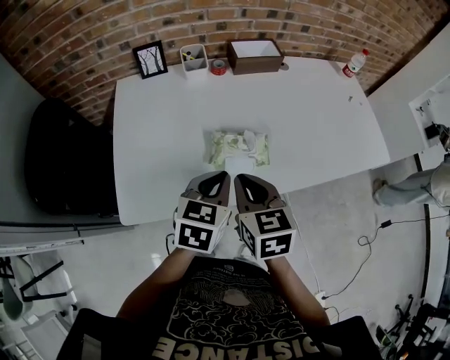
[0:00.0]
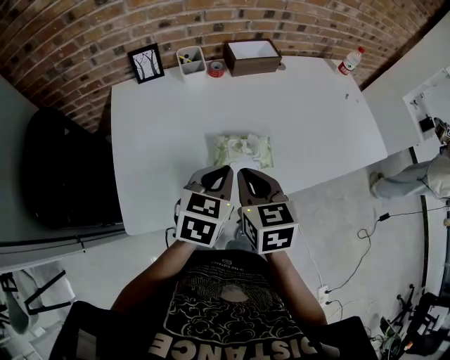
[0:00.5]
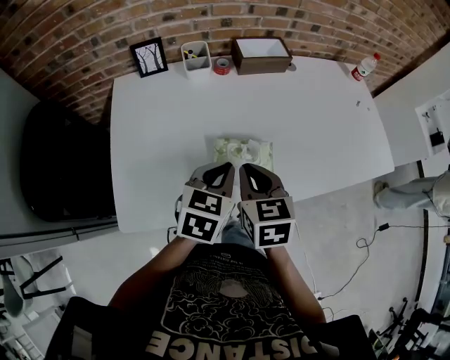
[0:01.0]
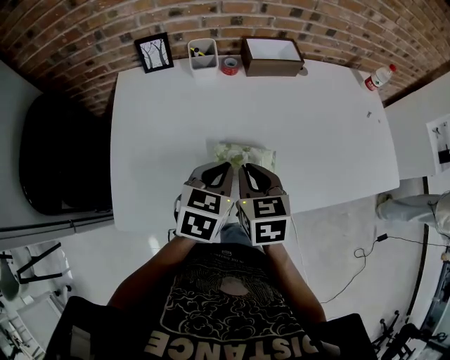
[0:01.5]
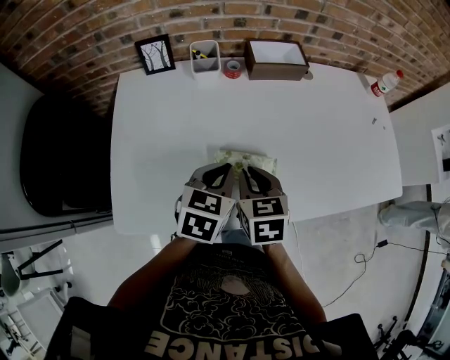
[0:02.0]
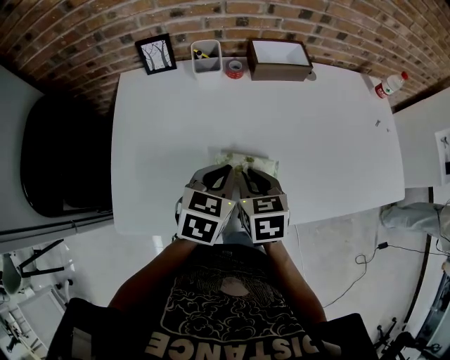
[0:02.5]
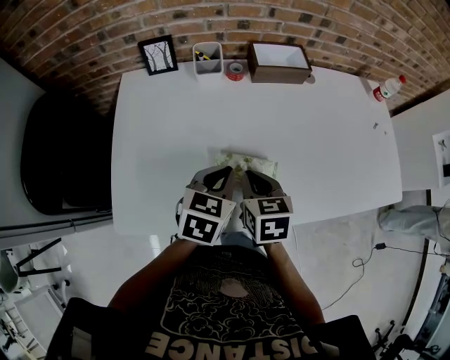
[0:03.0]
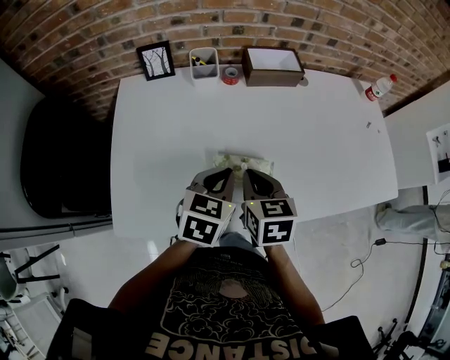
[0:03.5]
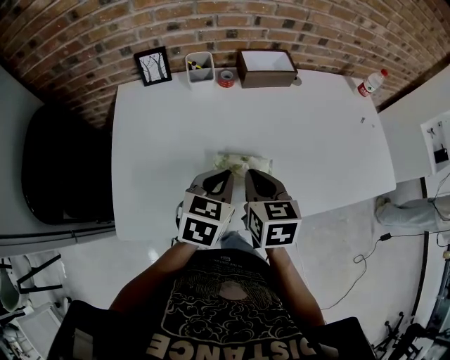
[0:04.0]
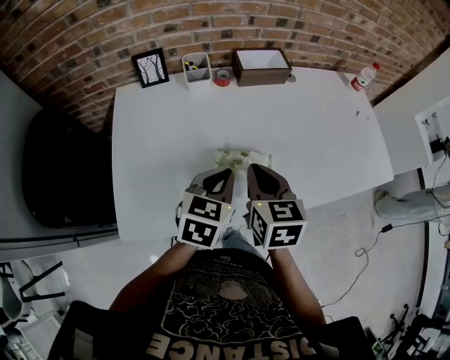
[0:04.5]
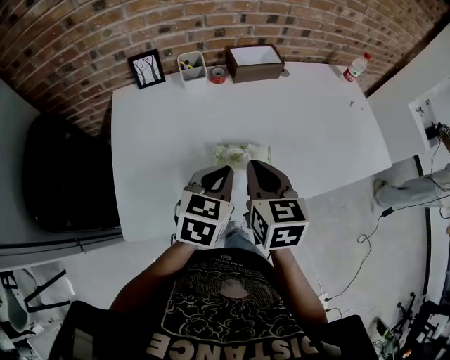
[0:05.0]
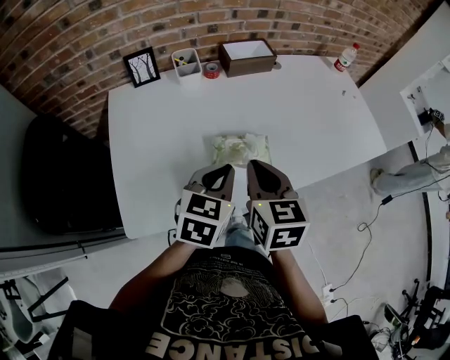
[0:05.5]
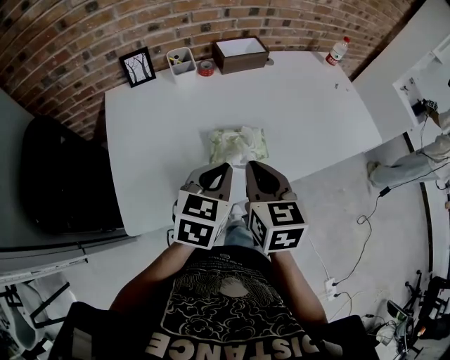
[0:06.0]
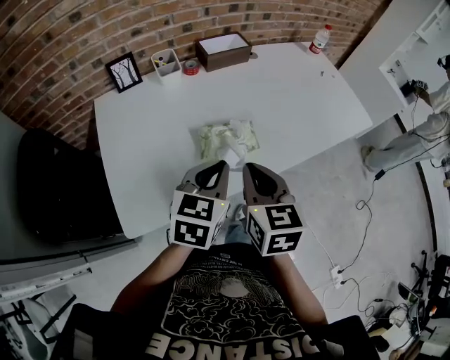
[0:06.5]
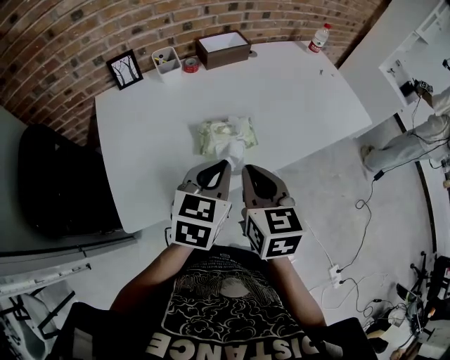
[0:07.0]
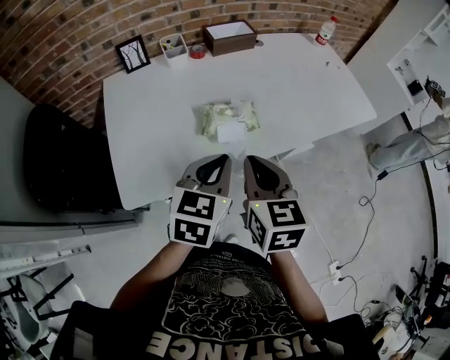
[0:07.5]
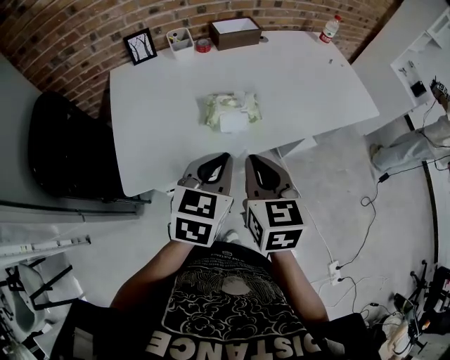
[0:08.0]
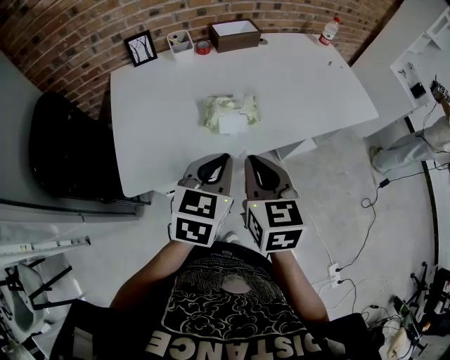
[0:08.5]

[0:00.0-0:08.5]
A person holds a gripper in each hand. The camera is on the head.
0.0 to 2.0 s: The left gripper is displaced forward by roughly 10 cm; the right gripper goes approximately 15 cm forward and downward.
2.0 to 4.0 s: The grippers make only small movements.
4.0 to 6.5 s: The right gripper travels backward and upward by some 15 cm. The left gripper shifts roughly 10 cm backward.
6.5 to 8.5 s: The grippers both shift backward by roughly 10 cm.

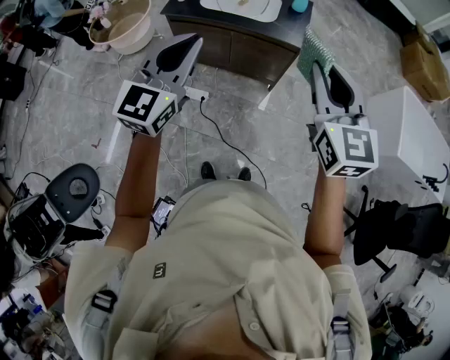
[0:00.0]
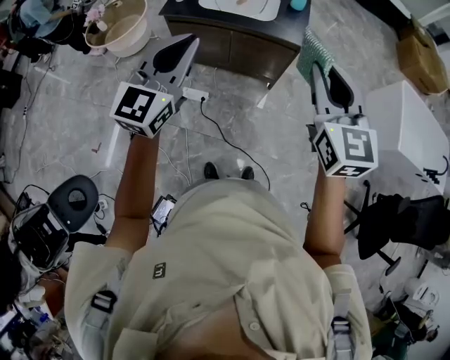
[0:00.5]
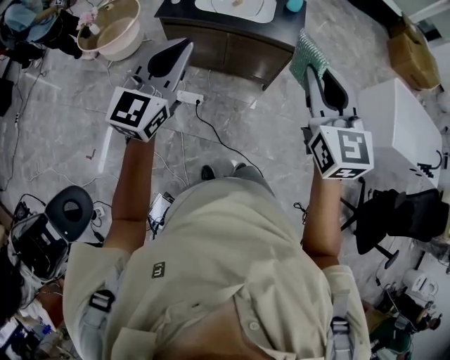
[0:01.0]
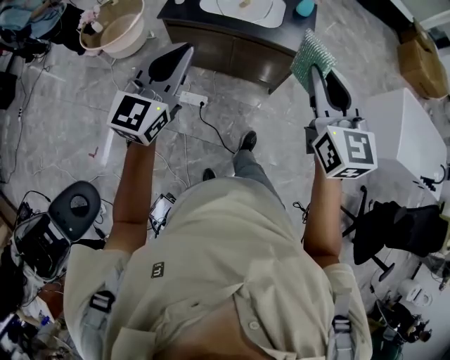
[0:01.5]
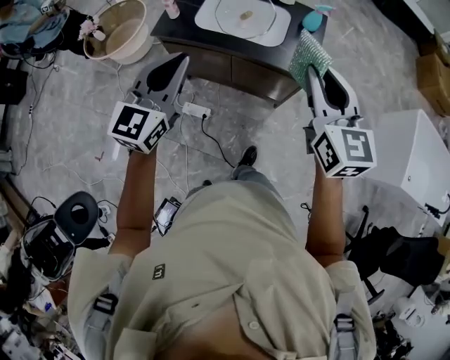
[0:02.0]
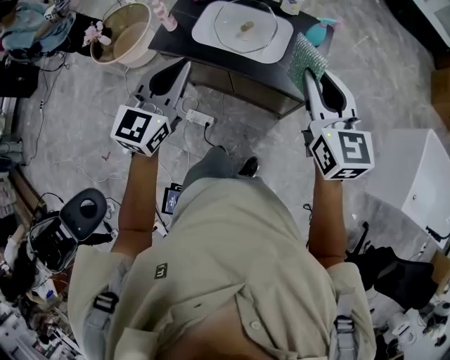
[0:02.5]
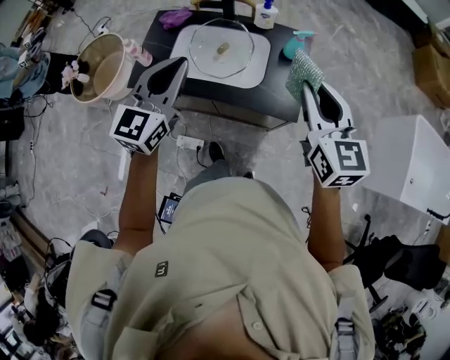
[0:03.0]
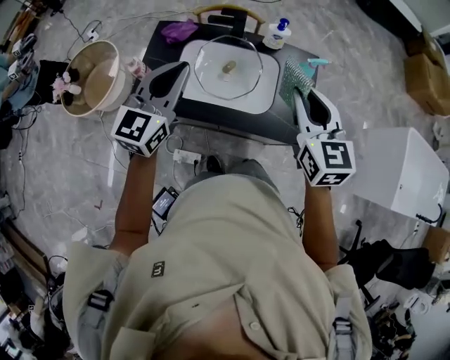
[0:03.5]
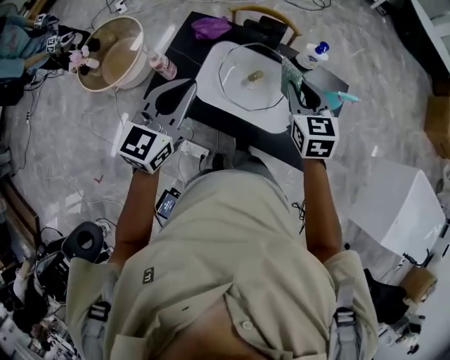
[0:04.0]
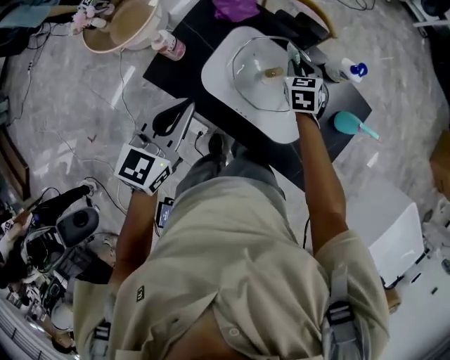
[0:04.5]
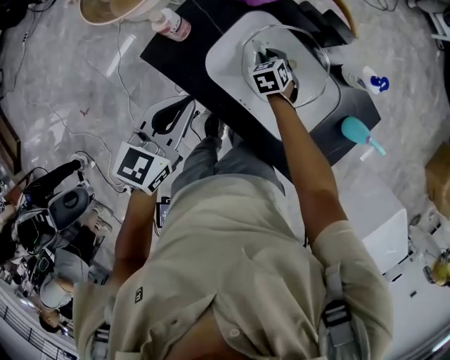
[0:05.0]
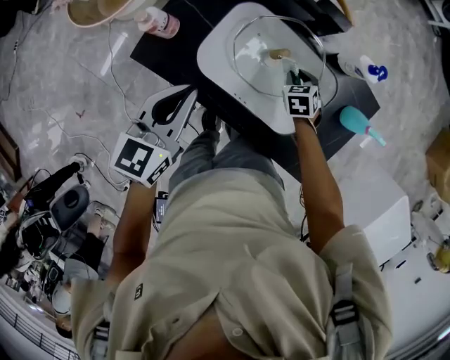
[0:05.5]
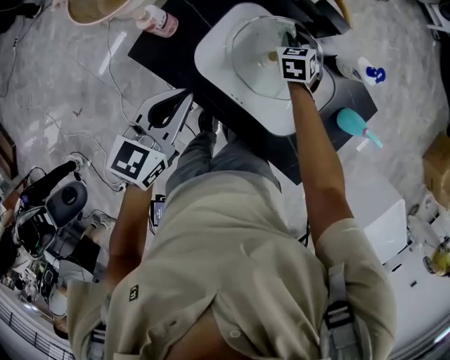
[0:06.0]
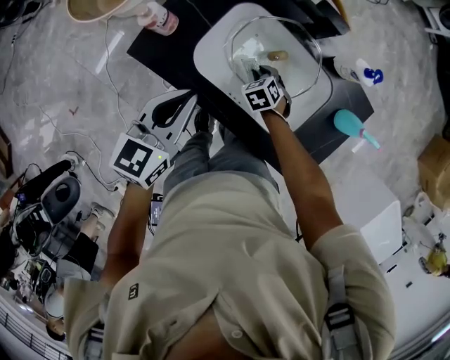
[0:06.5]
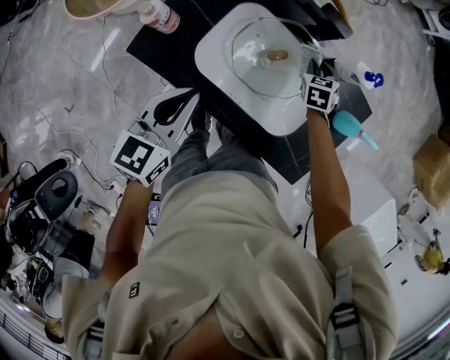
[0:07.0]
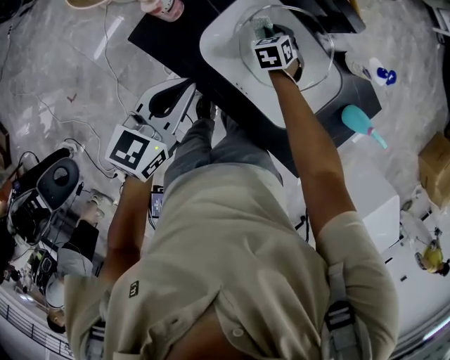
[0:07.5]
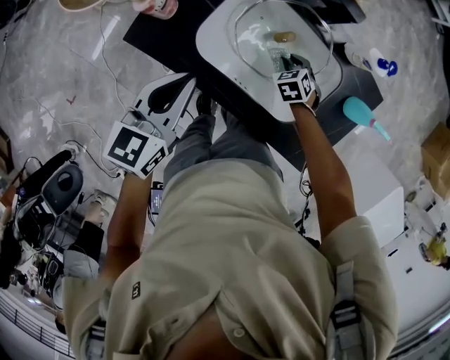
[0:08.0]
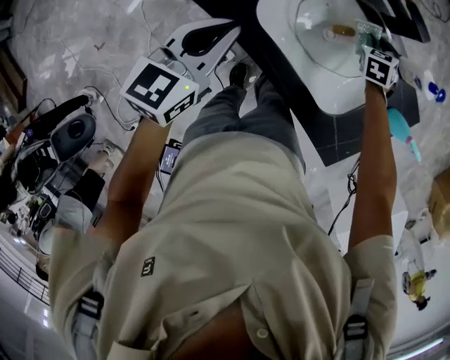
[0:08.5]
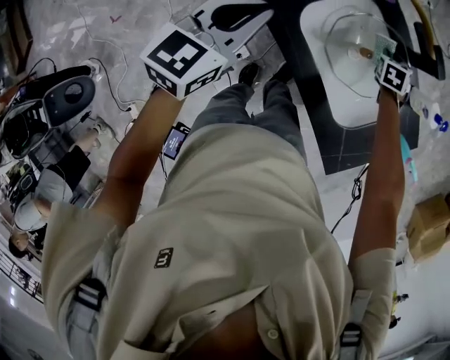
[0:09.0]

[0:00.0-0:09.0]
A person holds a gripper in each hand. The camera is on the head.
0.0 to 2.0 s: Both grippers travel together forward, approximately 25 cm.
2.0 to 4.5 s: The left gripper goes roughly 40 cm forward and downward, and turns by roughly 30 degrees. Meanwhile the right gripper goes approximately 70 cm forward and downward, and tips its fingers downward by some 40 degrees.
4.5 to 7.0 s: The right gripper moves left and right over approximately 20 cm, changing direction 3 times. The left gripper moves downward, some 10 cm.
7.0 to 9.0 s: The left gripper travels to the left by about 10 cm, while the right gripper moves left and right over approximately 15 cm, changing direction 2 times.

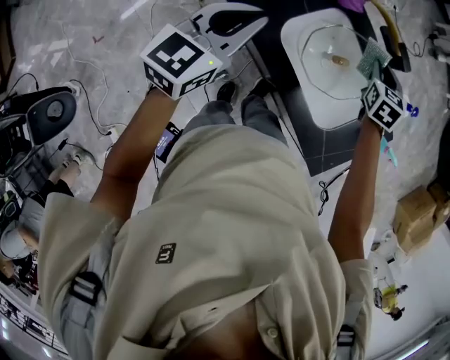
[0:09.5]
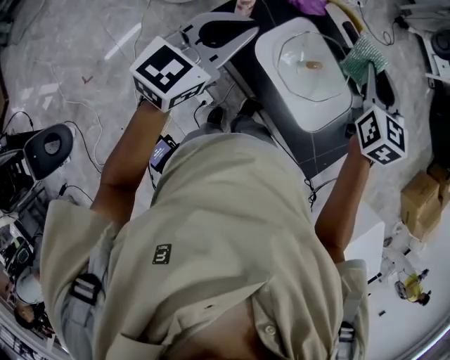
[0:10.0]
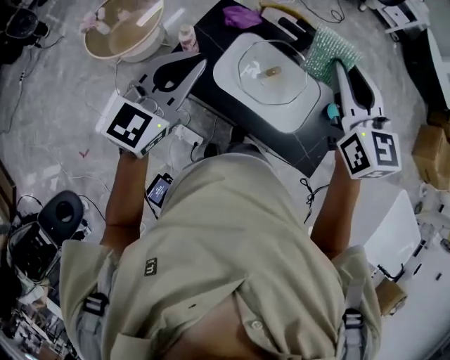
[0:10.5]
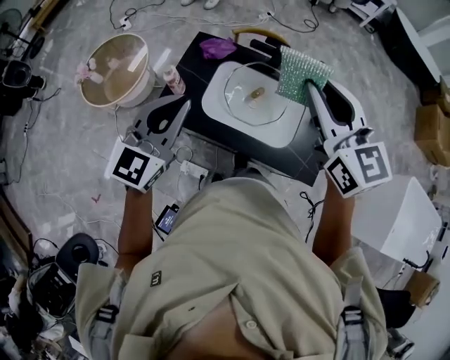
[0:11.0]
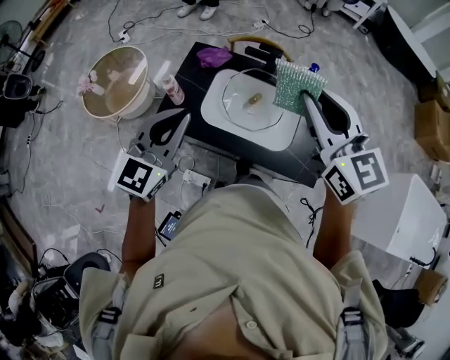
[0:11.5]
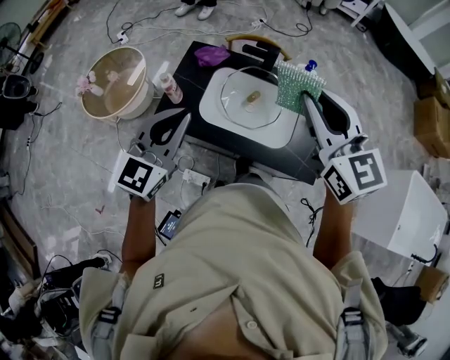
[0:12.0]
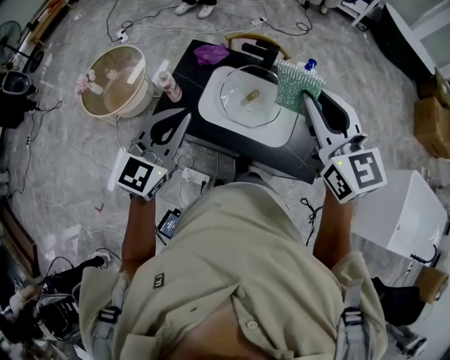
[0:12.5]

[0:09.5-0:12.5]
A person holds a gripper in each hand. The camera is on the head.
9.5 to 11.0 s: The left gripper moves upward and to the right, some 20 cm, and turns by approximately 30 degrees; the right gripper moves upward and backward, roughly 40 cm, and tips its fingers upward by approximately 40 degrees.
11.0 to 12.5 s: The grippers stay close to where they were, moving slightly.

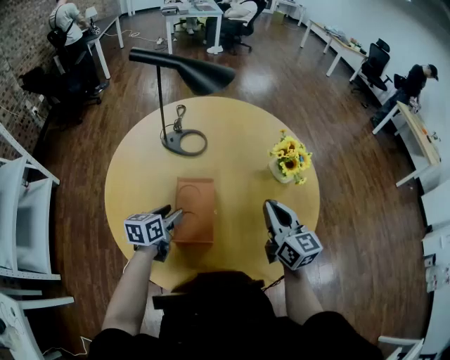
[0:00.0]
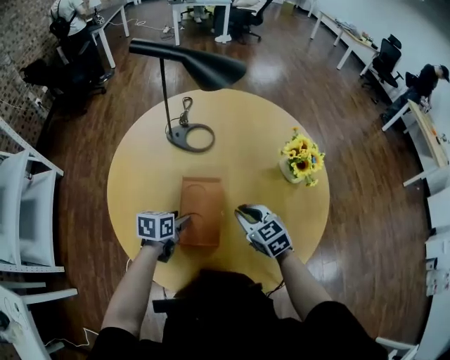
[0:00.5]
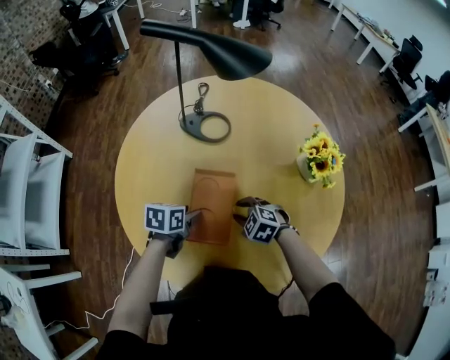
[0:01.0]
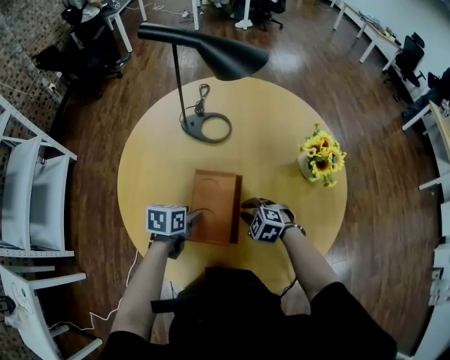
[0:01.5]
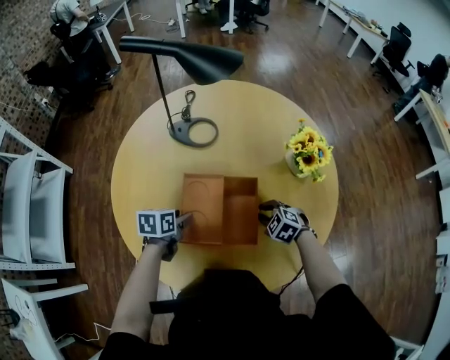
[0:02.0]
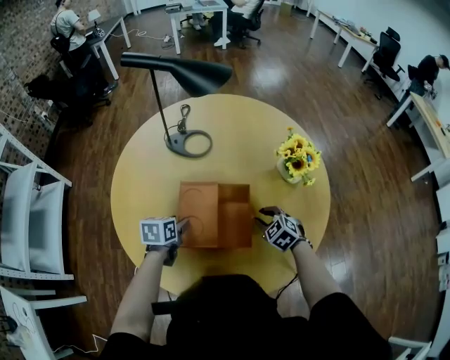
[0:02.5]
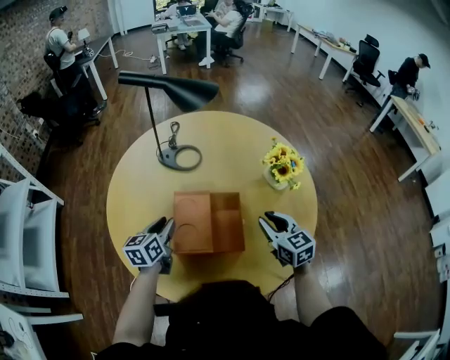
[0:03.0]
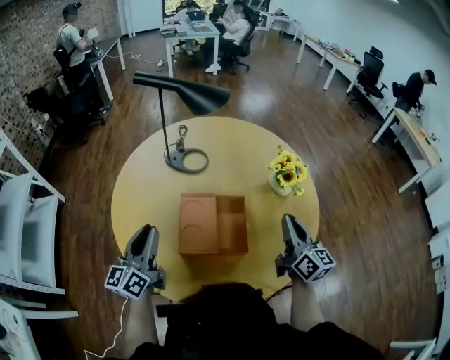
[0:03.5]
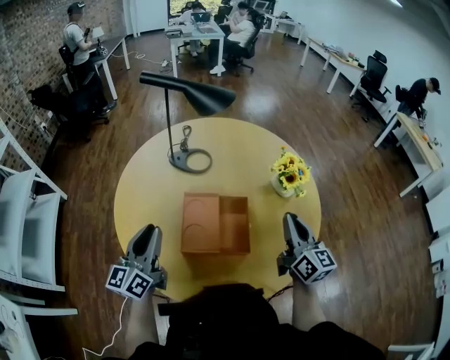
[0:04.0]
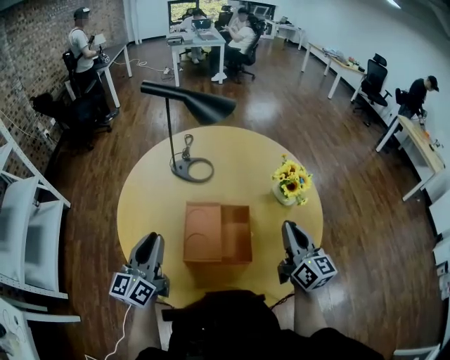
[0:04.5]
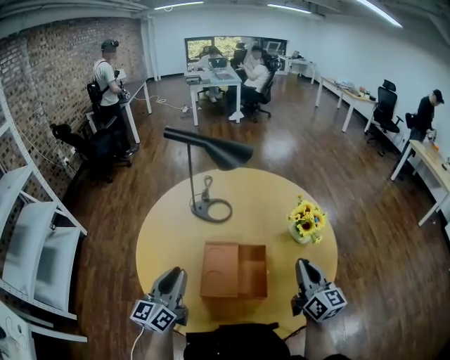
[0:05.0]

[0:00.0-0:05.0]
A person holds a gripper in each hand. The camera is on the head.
0.0 to 2.5 s: The left gripper is displaced downward by roughly 5 cm. Meanwhile the right gripper is displaced downward by roughly 20 cm, points its fingers about 40 degrees further downward, and opens its fingers.
2.5 to 5.0 s: The right gripper shifts roughly 25 cm upward, tips its fingers upward by about 50 degrees, and closes its fingers. The left gripper travels upward and backward by some 25 cm, tips its fingers upward by roughly 50 degrees, and closes up.

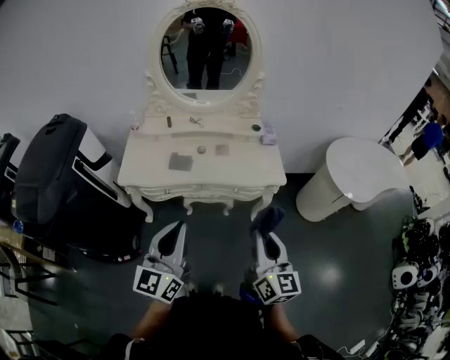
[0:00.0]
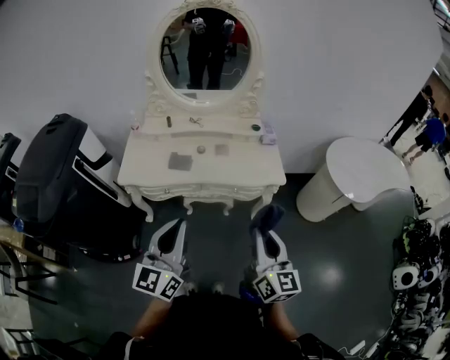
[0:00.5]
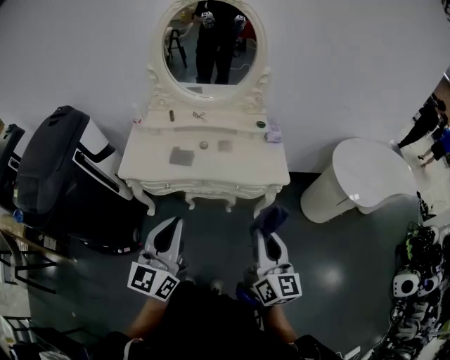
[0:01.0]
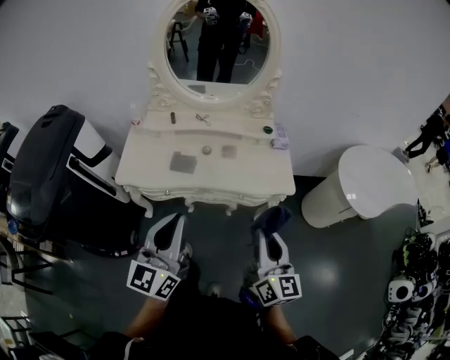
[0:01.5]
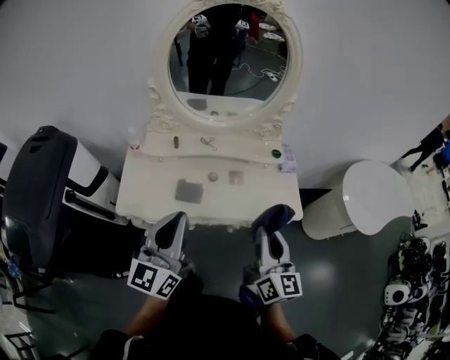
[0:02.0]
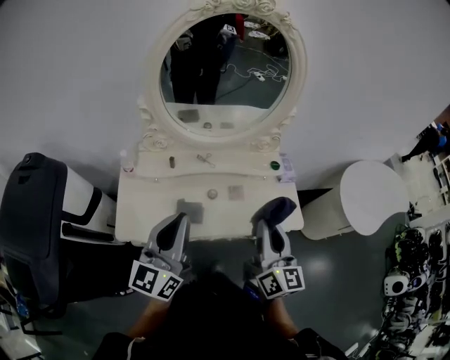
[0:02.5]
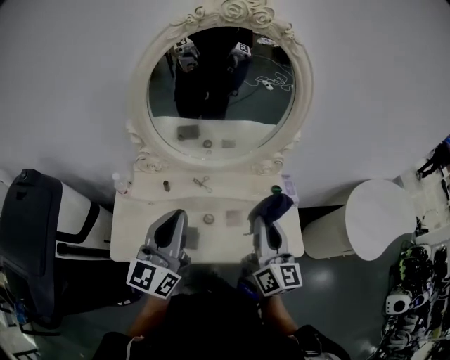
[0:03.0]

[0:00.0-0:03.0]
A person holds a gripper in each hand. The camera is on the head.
0.0 to 1.5 s: Both grippers move forward, roughly 10 cm.
1.5 to 3.0 s: The two grippers go approximately 35 cm forward.
